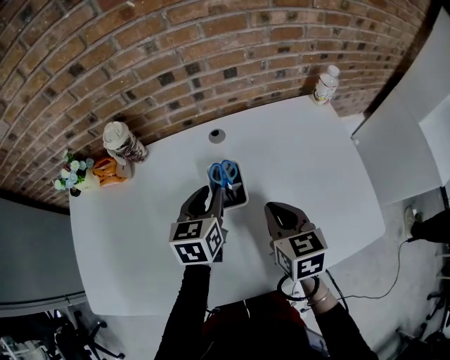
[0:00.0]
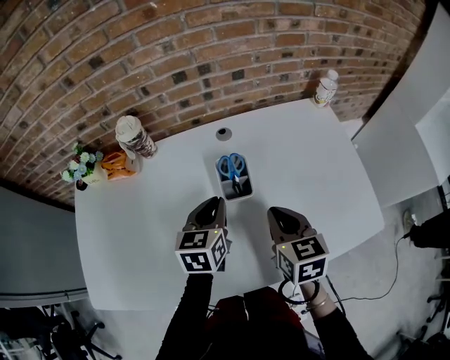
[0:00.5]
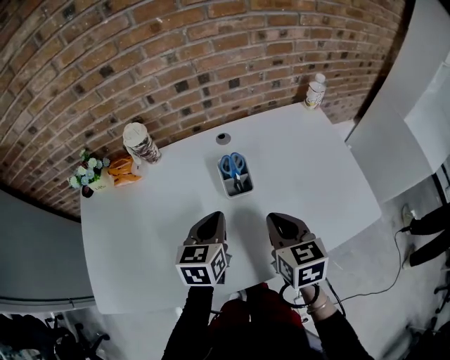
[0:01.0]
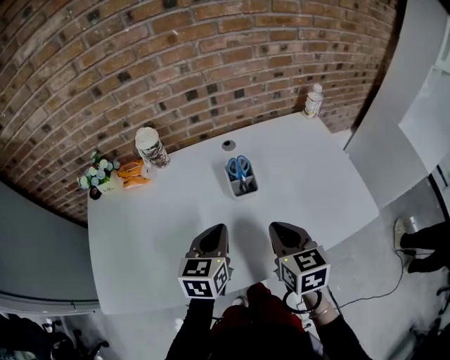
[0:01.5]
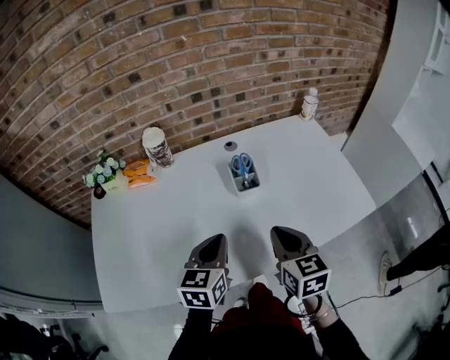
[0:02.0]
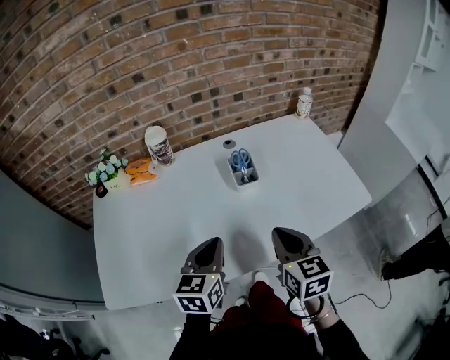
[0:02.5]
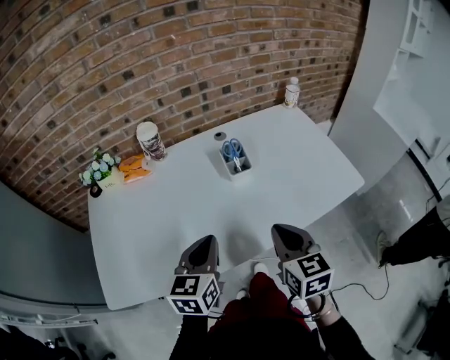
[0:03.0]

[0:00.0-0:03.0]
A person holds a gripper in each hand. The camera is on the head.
0:00.0 to 0:01.5: The grippers both shift backward by roughly 15 cm. The left gripper closes up.
0:01.5 to 0:03.0: The right gripper goes roughly 10 cm backward; the left gripper moves backward and to the left, approximately 15 cm.

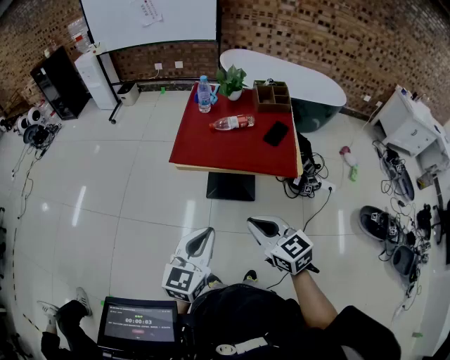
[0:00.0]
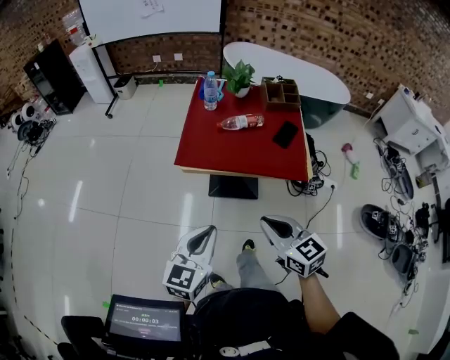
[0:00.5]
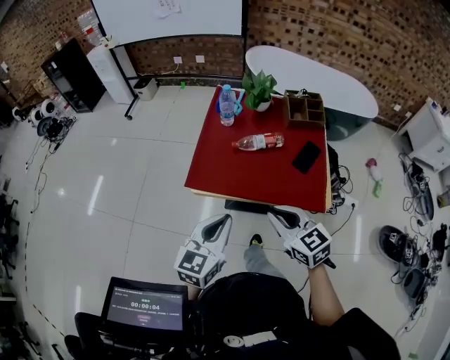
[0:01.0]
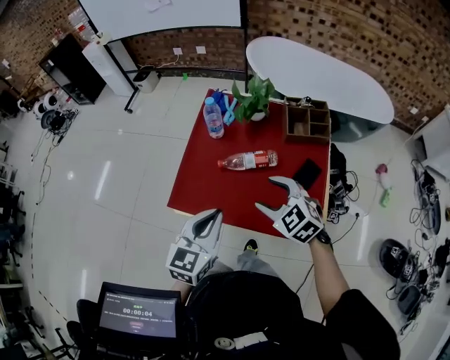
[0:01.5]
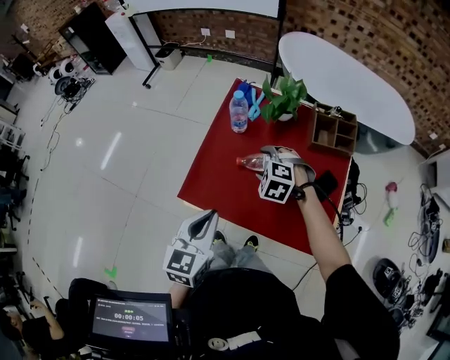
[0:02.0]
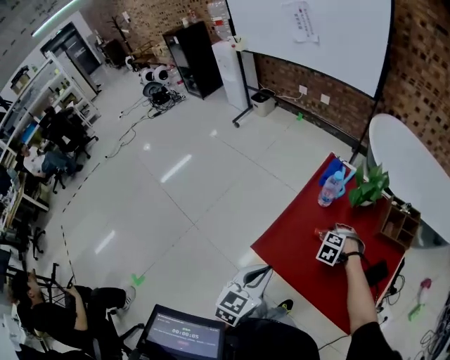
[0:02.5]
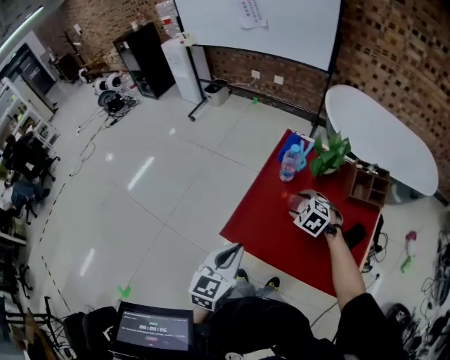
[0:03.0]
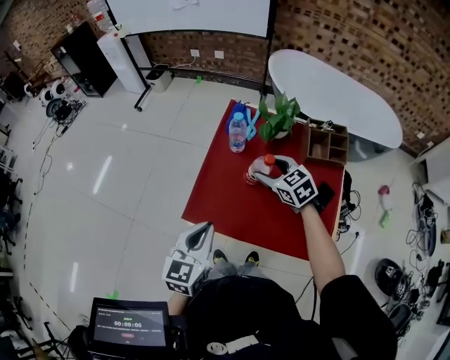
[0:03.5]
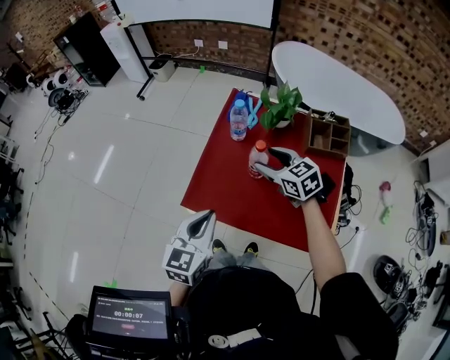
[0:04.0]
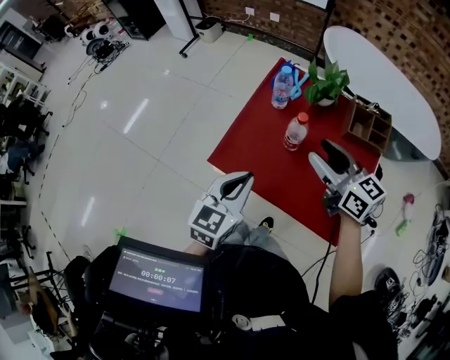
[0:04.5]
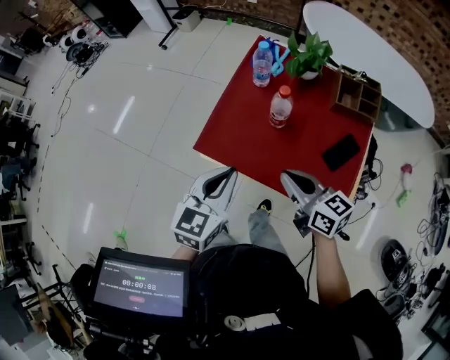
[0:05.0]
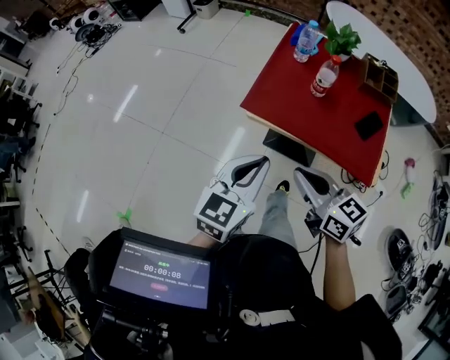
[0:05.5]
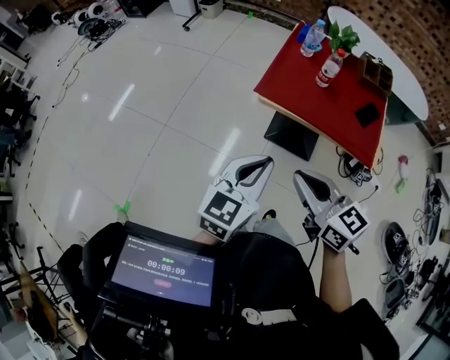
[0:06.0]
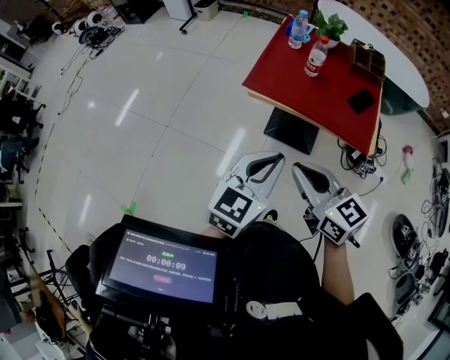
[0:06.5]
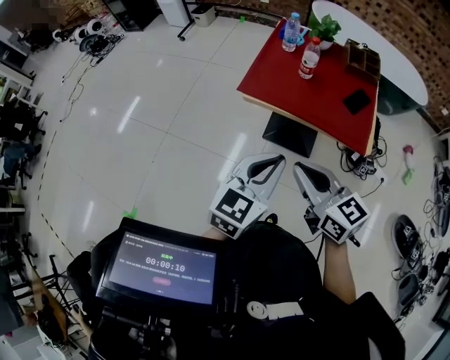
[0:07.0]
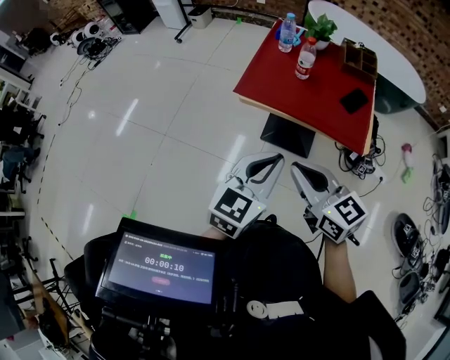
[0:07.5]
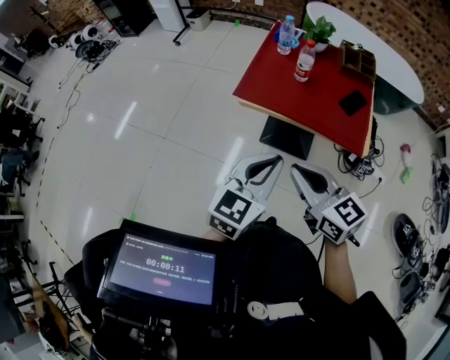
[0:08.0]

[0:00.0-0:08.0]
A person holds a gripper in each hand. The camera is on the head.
0:00.0 to 0:02.0: The grippers both shift forward by approximately 40 cm. The right gripper angles its fingers downward, by approximately 40 degrees, and opens up.
0:02.0 to 0:04.0: The right gripper moves upward, about 10 cm, and twists roughly 50 degrees clockwise, seen from behind.
0:04.0 to 0:06.0: The left gripper travels backward and to the left by some 30 cm; the right gripper heads backward and to the left, covering about 50 cm, and closes its fingers.
0:06.0 to 0:08.0: The grippers both shift to the right by some 10 cm.

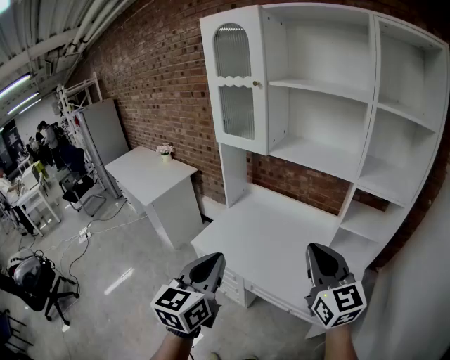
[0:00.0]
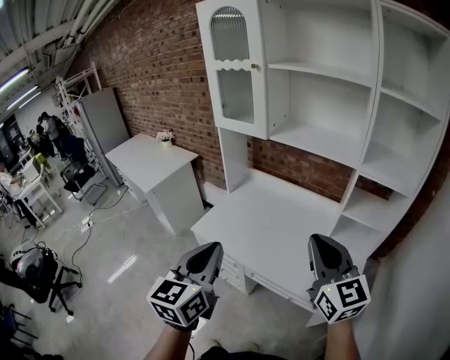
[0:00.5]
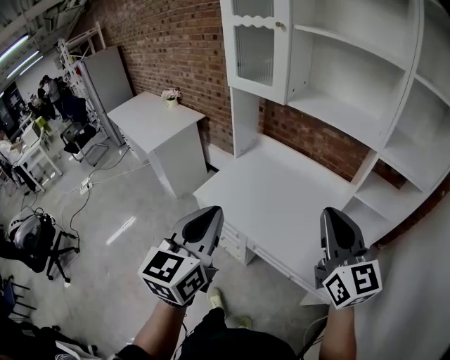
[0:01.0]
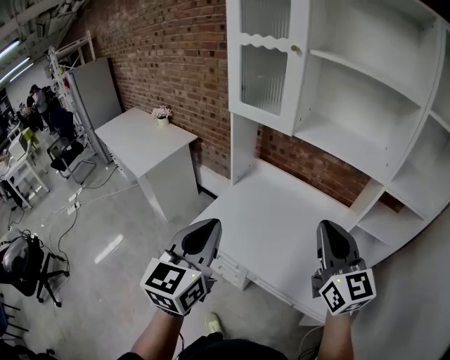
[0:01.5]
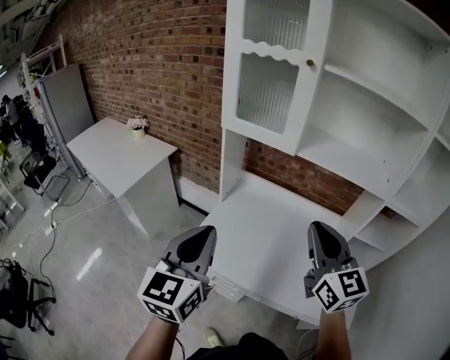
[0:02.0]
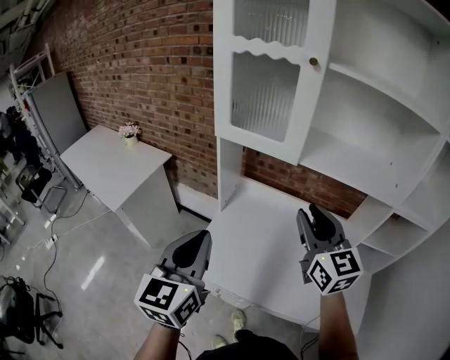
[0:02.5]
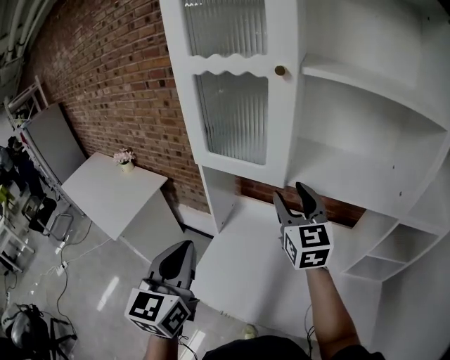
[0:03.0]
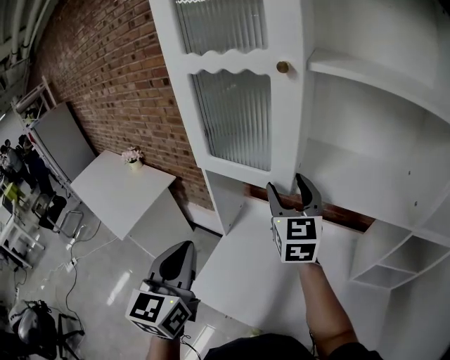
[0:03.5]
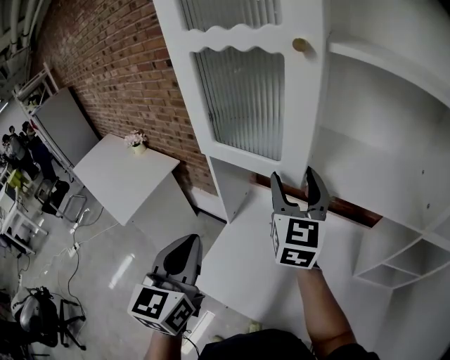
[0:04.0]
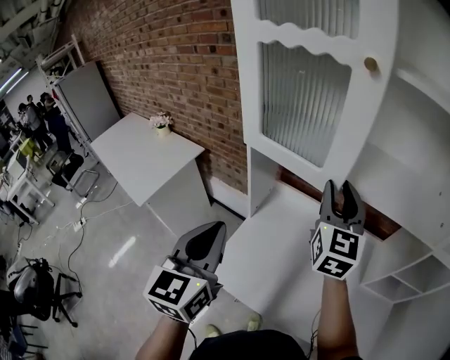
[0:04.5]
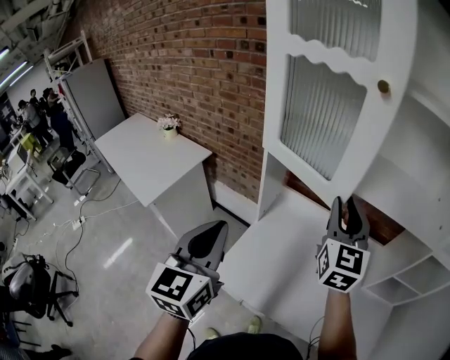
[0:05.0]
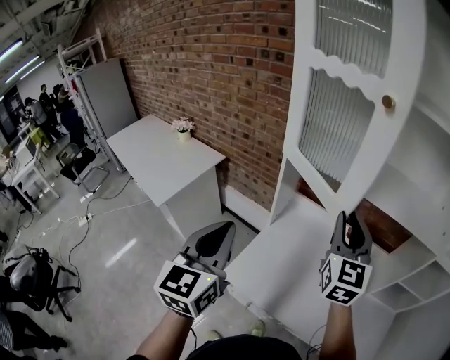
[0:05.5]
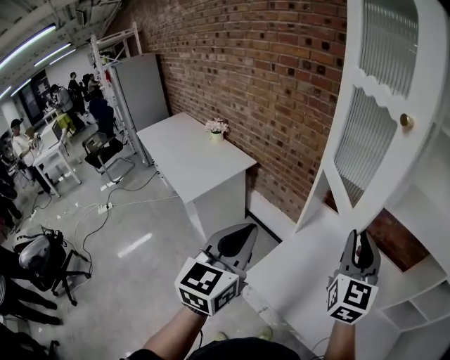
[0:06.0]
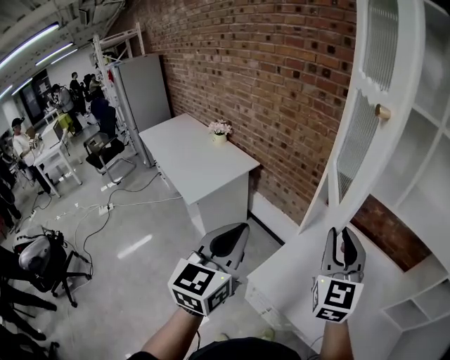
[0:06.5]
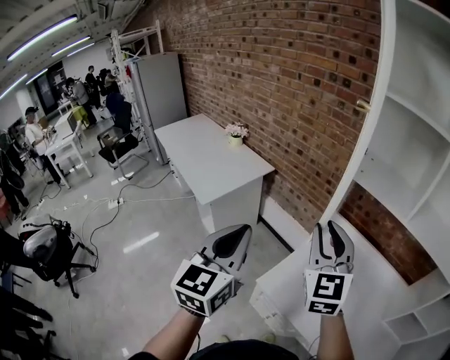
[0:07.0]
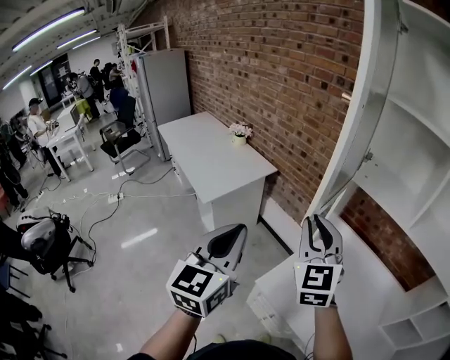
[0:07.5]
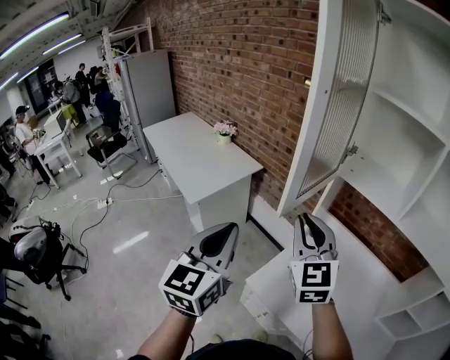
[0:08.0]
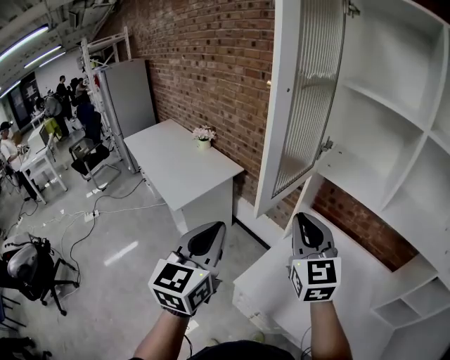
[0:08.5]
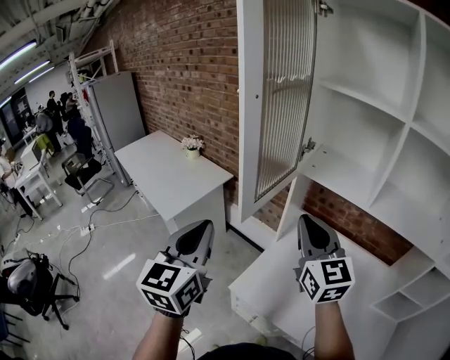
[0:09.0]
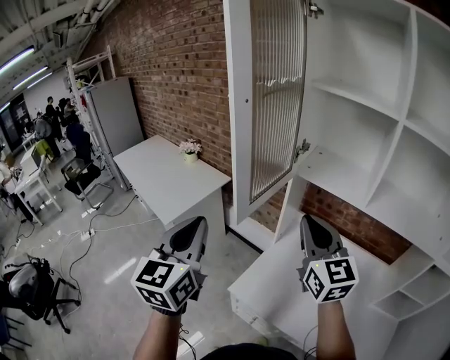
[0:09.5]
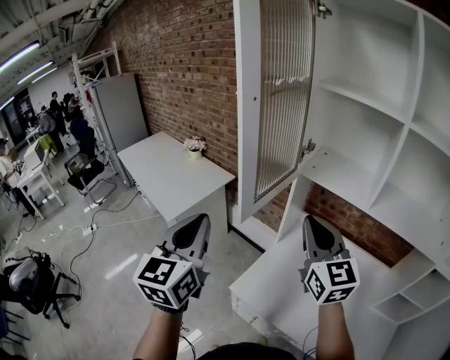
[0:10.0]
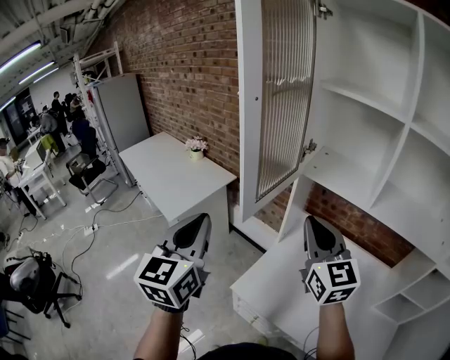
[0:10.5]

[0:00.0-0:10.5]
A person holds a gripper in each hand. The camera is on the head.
0:00.0 to 0:02.0: The two grippers go approximately 25 cm forward and to the left.
0:02.0 to 0:04.0: The left gripper goes approximately 20 cm forward. The right gripper heads forward, covering some 30 cm, and opens its fingers.
0:04.0 to 0:06.5: The grippers both shift to the left and backward by approximately 25 cm. The right gripper closes up.
0:06.5 to 0:08.5: The right gripper goes roughly 5 cm to the left.
0:08.5 to 0:10.5: The right gripper moves to the right, roughly 5 cm.

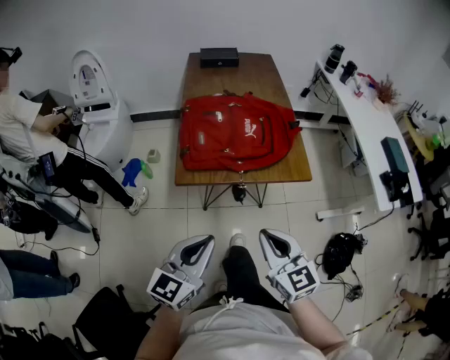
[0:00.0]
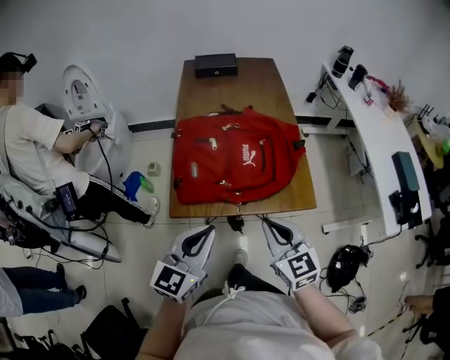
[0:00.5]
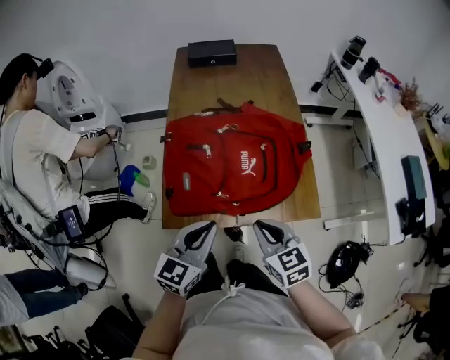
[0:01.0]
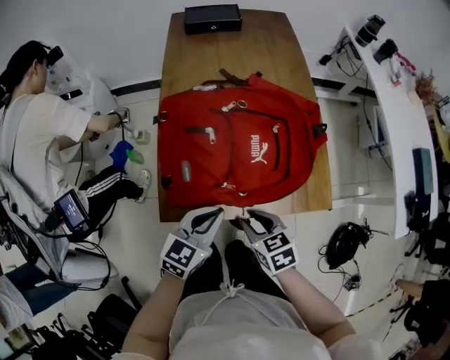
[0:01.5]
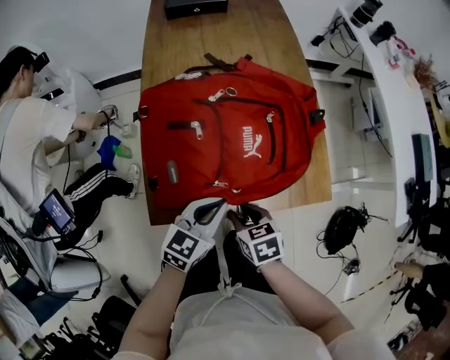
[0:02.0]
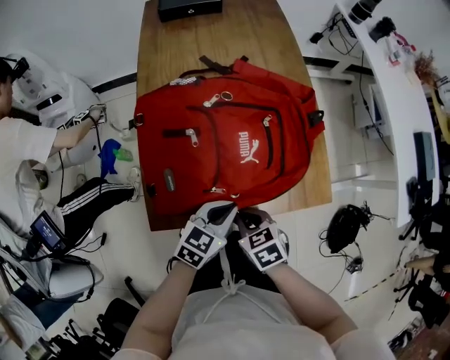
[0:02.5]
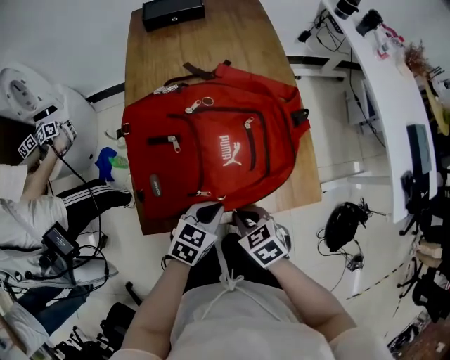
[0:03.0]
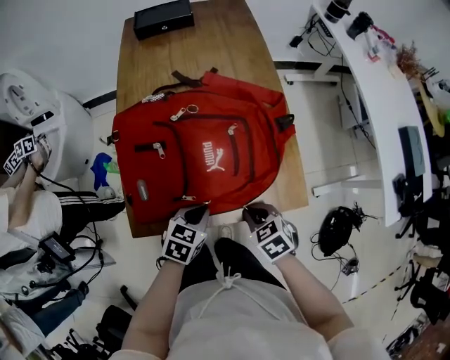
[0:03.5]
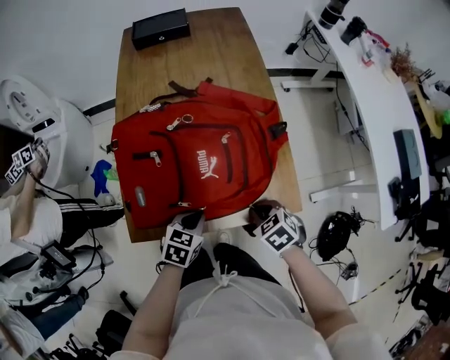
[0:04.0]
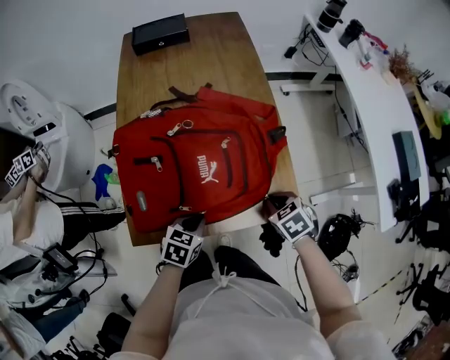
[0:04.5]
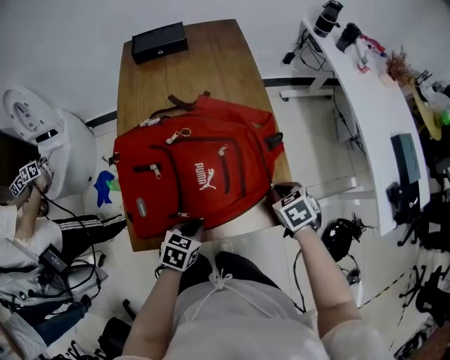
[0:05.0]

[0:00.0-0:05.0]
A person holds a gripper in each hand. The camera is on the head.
0:00.0 to 0:02.5: The two grippers go roughly 35 cm forward and downward. The left gripper rotates roughly 30 degrees; the right gripper tilts its fingers some 40 degrees downward, and opens and closes again.
0:02.5 to 0:05.0: The left gripper changes its angle by about 20 degrees. Meanwhile the right gripper travels to the right and forward by approximately 25 cm.
